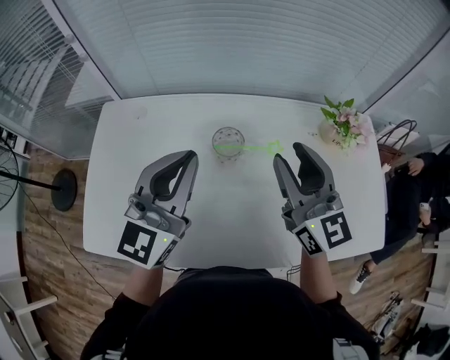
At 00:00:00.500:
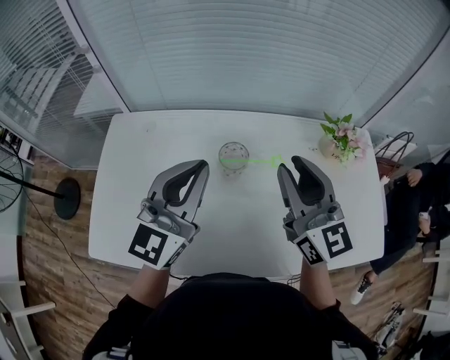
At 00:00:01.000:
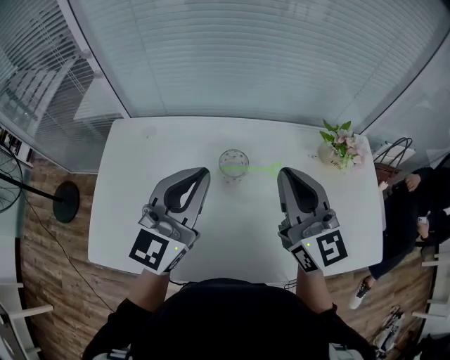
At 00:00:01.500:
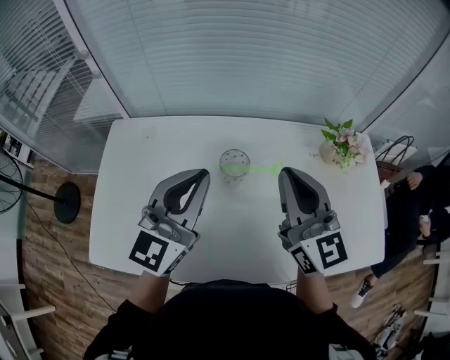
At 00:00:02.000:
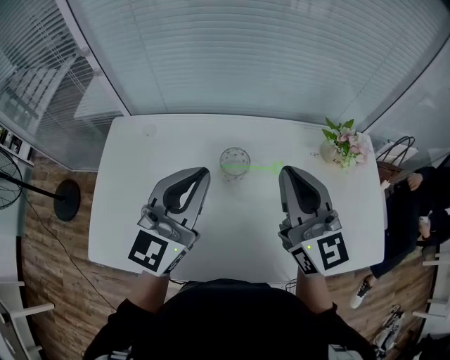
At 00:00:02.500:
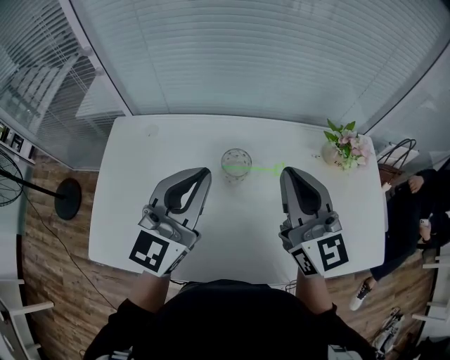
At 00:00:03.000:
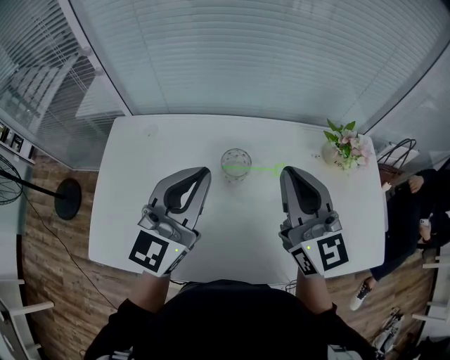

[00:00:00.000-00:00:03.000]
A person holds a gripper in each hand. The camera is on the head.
00:00:00.000 to 00:00:01.500: The right gripper closes.
00:00:01.500 to 00:00:03.000: Both grippers stay about where they are.

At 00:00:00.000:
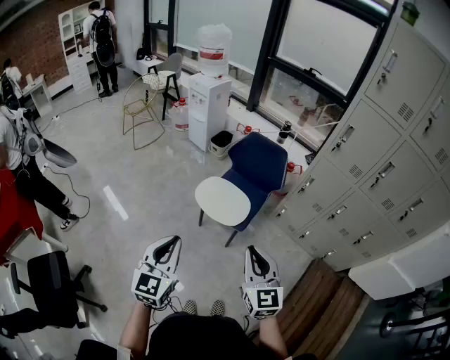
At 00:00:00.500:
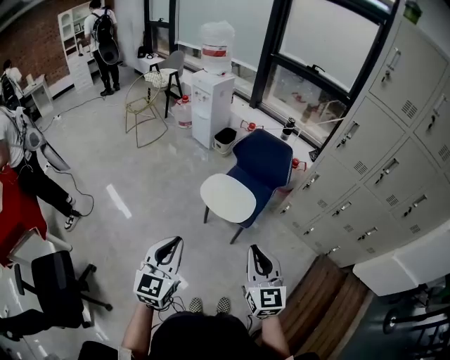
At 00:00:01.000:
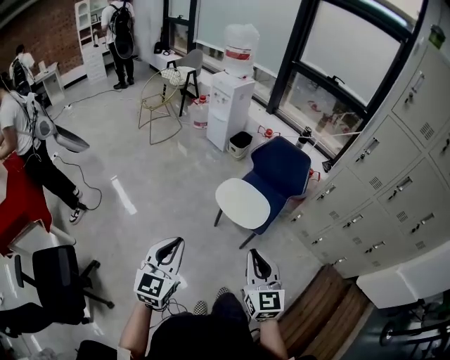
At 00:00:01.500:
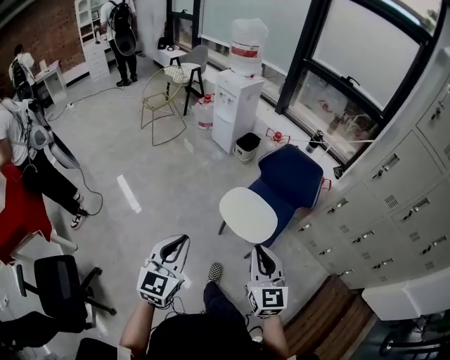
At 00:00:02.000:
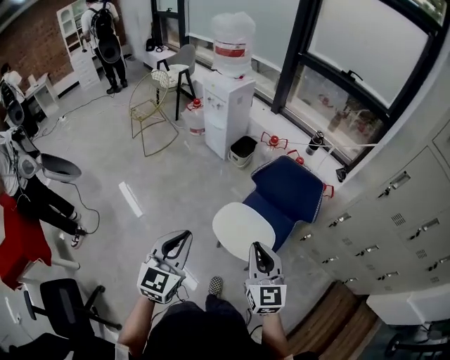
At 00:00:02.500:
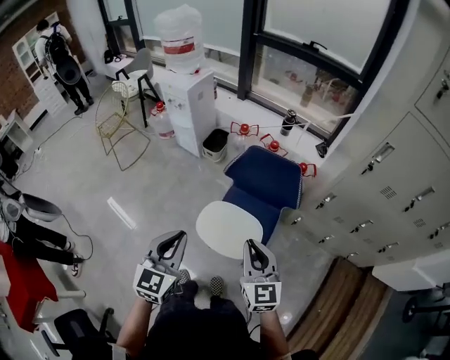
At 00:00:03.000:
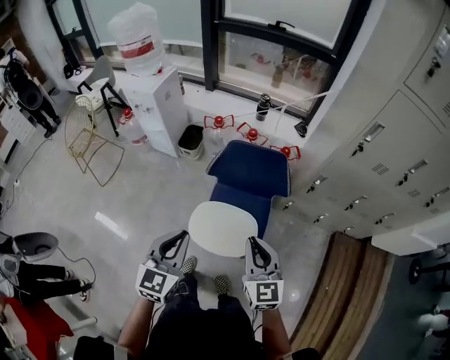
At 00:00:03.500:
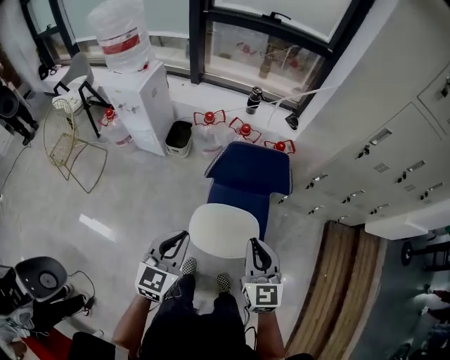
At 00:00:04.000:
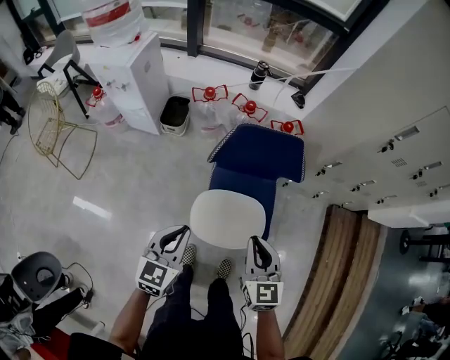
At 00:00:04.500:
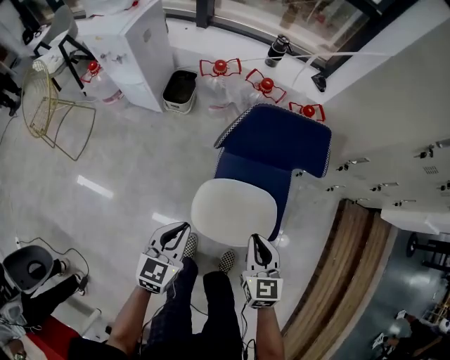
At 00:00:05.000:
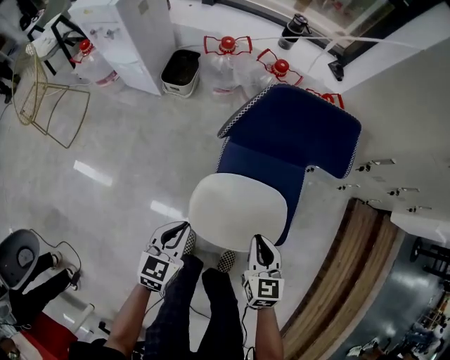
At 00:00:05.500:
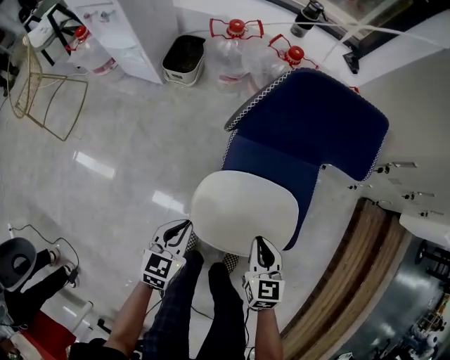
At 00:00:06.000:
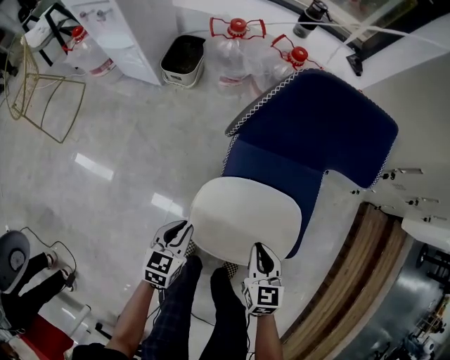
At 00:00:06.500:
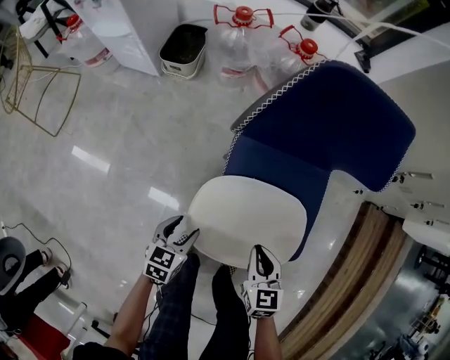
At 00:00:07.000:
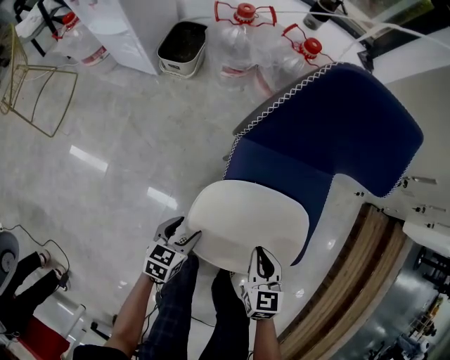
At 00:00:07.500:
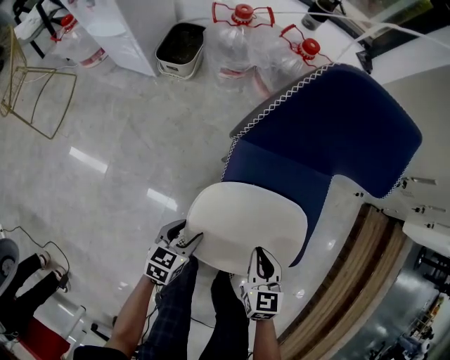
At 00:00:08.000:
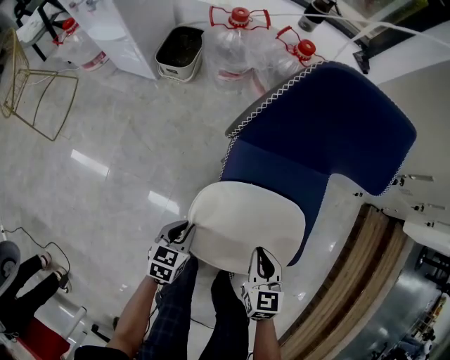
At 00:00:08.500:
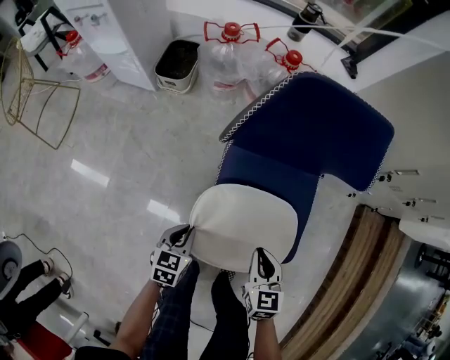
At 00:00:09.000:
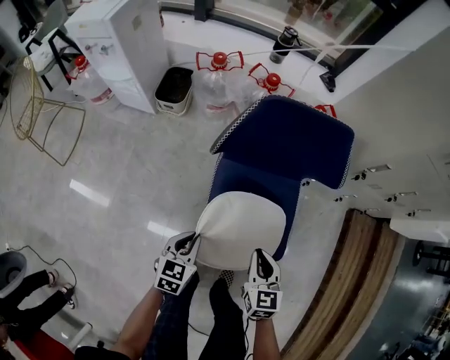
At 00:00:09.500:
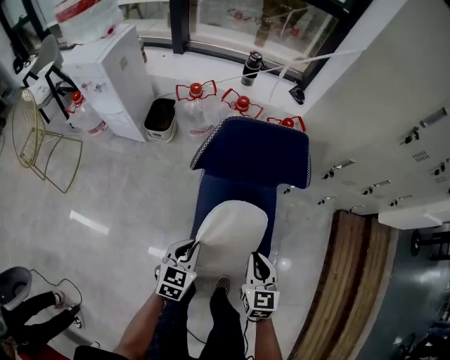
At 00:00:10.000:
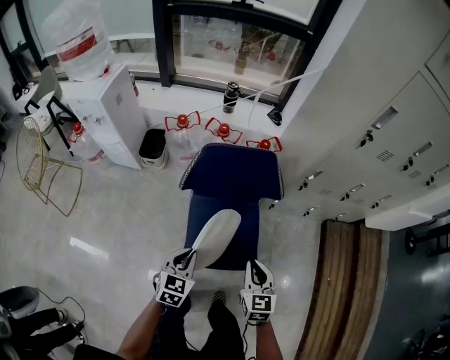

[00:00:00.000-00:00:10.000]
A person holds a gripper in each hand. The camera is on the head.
00:00:00.000 to 00:00:02.000: Both grippers move forward, about 35 cm.
00:00:02.000 to 00:00:04.000: The right gripper changes place by about 25 cm, and rotates approximately 40 degrees. Meanwhile the left gripper moves some 35 cm, and rotates some 40 degrees.
00:00:04.000 to 00:00:06.000: The two grippers go approximately 40 cm downward. The left gripper rotates some 20 degrees.
00:00:06.000 to 00:00:08.000: The left gripper goes approximately 10 cm downward, and opens, then closes once more.
00:00:08.000 to 00:00:10.000: The grippers both shift upward by some 35 cm. The left gripper changes its angle by some 30 degrees.

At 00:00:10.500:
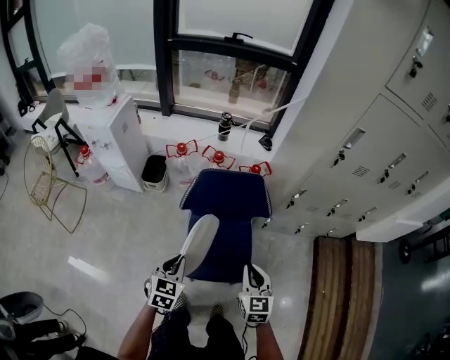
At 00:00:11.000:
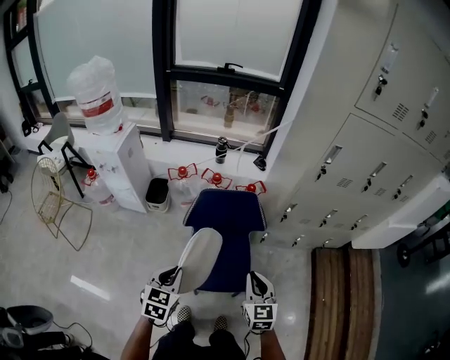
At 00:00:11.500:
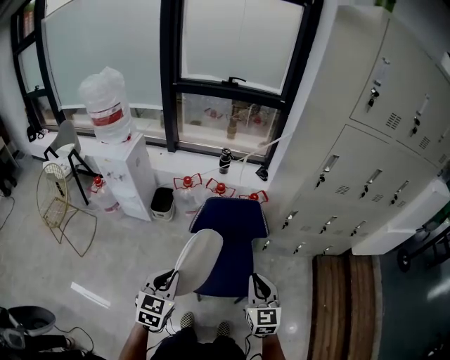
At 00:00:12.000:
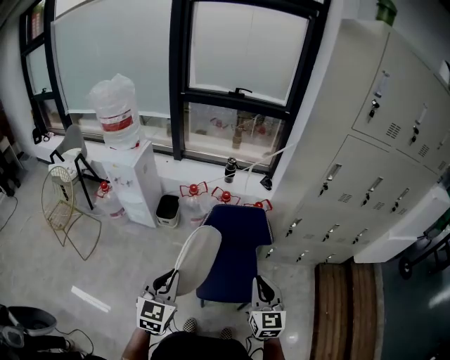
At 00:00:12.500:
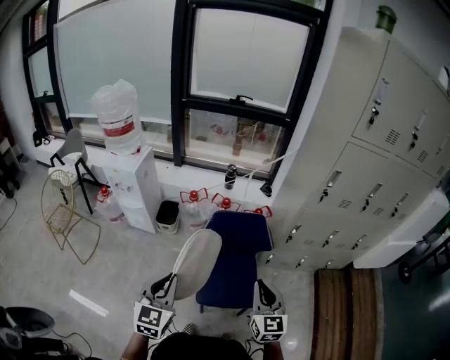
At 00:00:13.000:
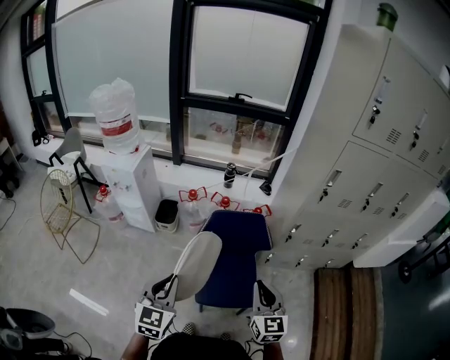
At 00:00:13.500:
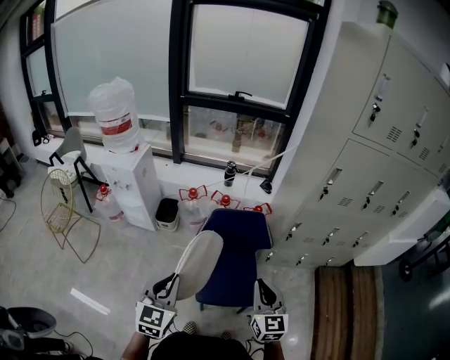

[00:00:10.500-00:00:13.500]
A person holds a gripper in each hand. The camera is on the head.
00:00:10.500 to 00:00:12.000: Both grippers travel together upward, approximately 20 cm.
00:00:12.000 to 00:00:13.500: The grippers stay close to where they were, moving slightly.

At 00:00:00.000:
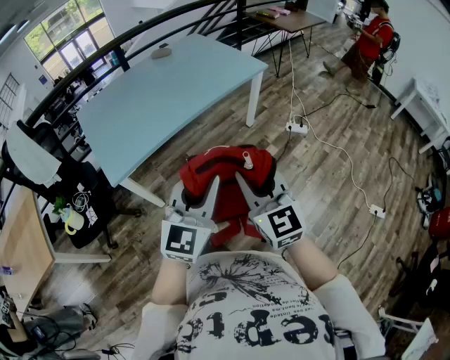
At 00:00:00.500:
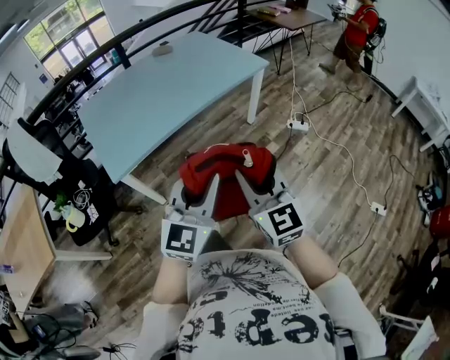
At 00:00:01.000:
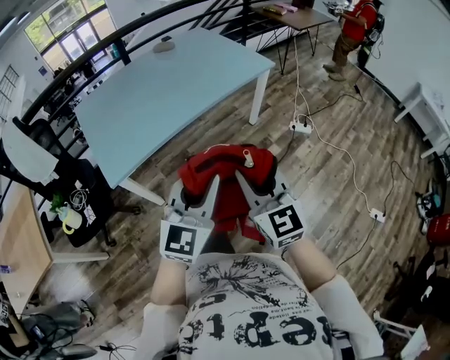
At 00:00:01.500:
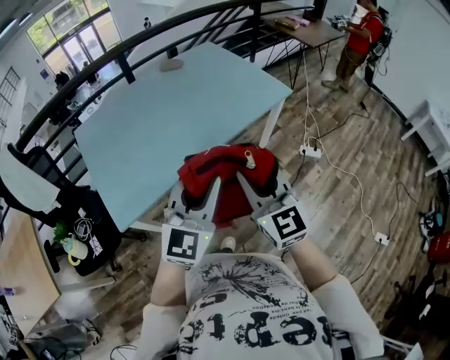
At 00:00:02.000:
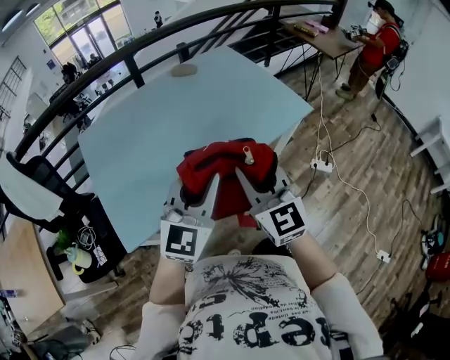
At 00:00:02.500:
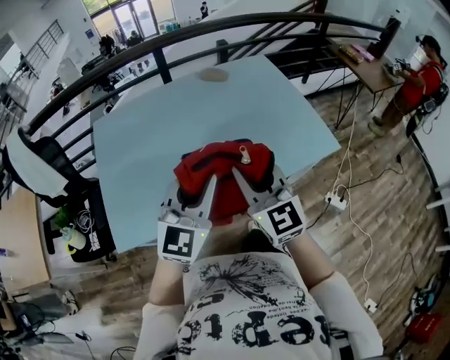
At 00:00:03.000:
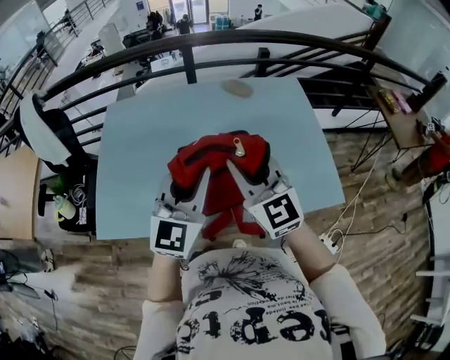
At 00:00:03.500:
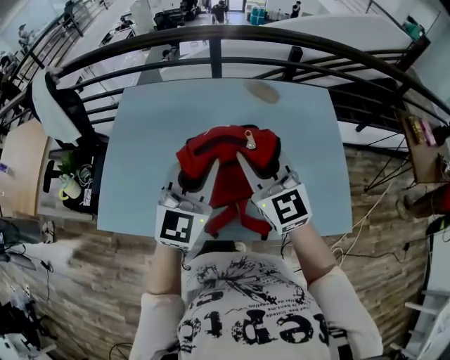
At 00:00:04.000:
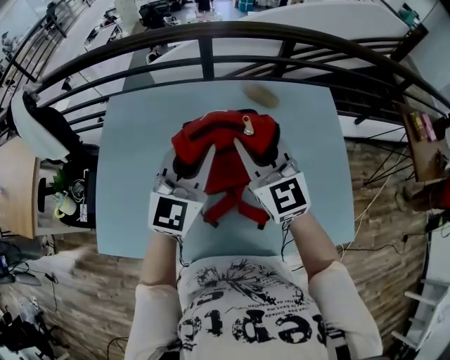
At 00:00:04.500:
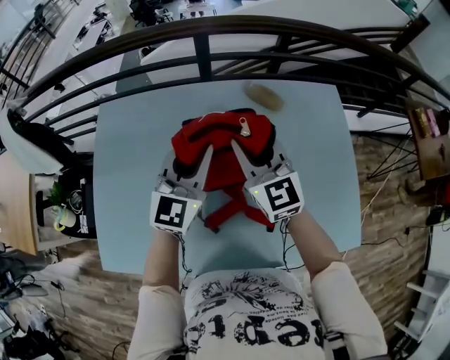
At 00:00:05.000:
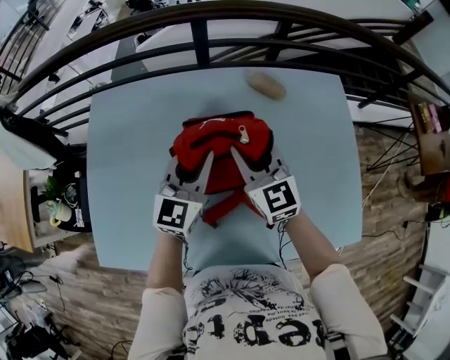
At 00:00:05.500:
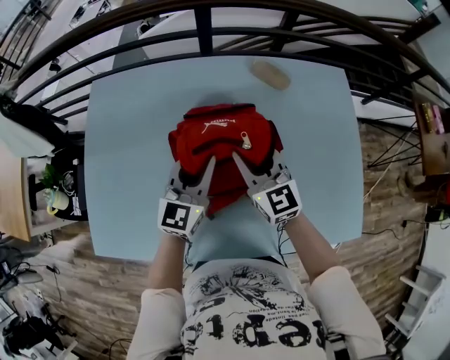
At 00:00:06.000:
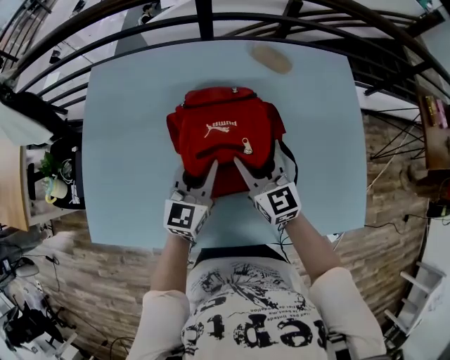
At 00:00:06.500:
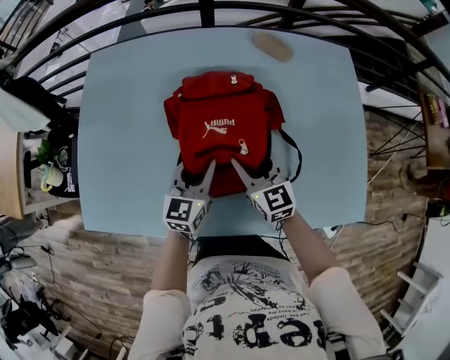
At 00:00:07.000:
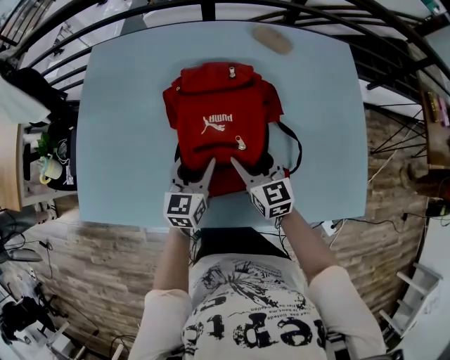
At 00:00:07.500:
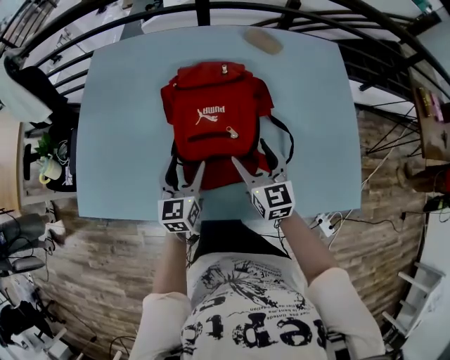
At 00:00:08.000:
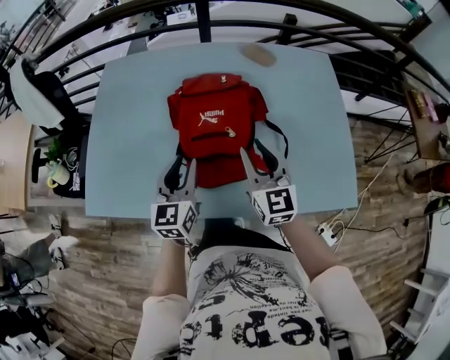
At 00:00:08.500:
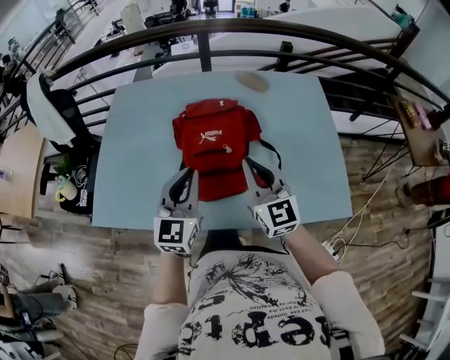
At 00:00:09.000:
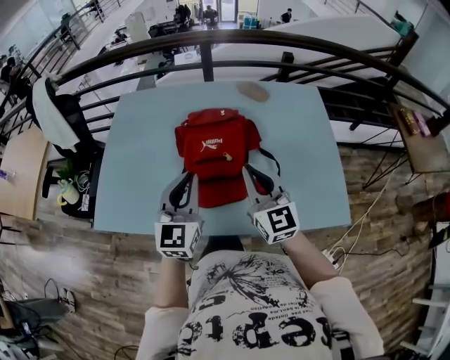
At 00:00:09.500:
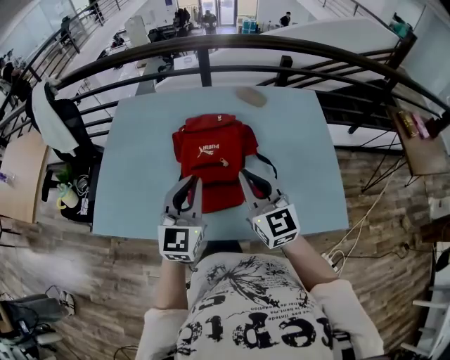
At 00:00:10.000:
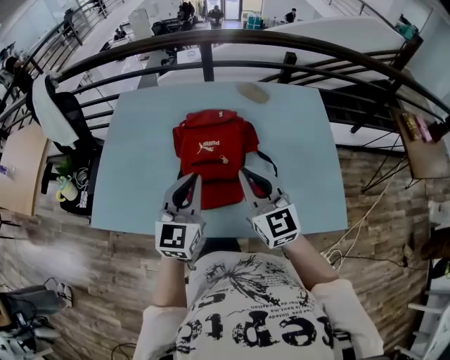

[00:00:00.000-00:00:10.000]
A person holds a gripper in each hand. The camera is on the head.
00:00:00.000 to 00:00:02.000: The pair of grippers is taken forward, about 40 cm.
00:00:02.000 to 00:00:04.000: The two grippers travel together, roughly 50 cm. The left gripper swivels some 30 degrees; the right gripper swivels roughly 40 degrees.
00:00:04.000 to 00:00:06.000: The two grippers go some 25 cm downward.
00:00:06.000 to 00:00:08.000: The left gripper travels backward and to the left by about 15 cm, and opens, then closes once more. Meanwhile the right gripper goes about 15 cm backward and upward, and opens, then closes once more.
00:00:08.000 to 00:00:10.000: The left gripper moves upward and to the right, some 15 cm, and closes its fingers. The right gripper travels upward by some 10 cm, and closes up.
